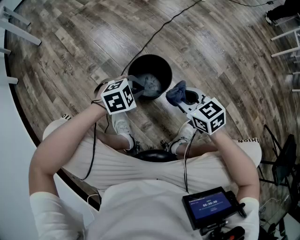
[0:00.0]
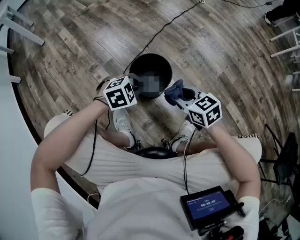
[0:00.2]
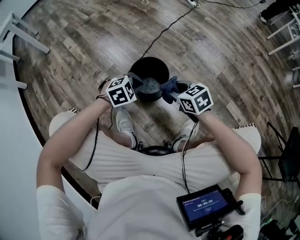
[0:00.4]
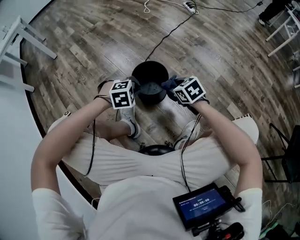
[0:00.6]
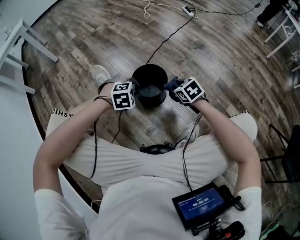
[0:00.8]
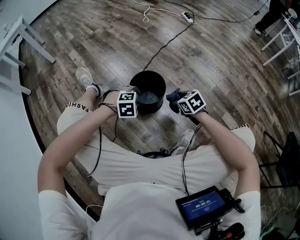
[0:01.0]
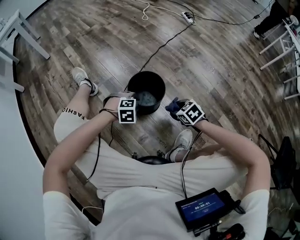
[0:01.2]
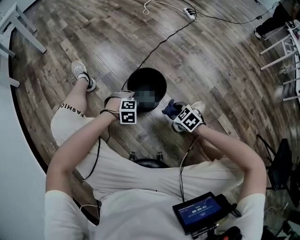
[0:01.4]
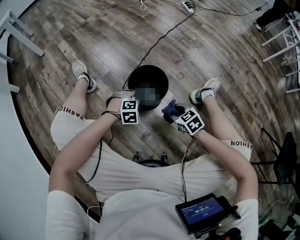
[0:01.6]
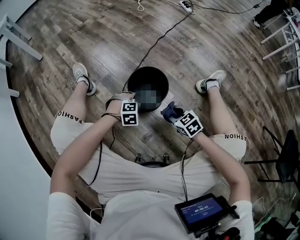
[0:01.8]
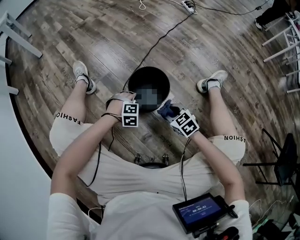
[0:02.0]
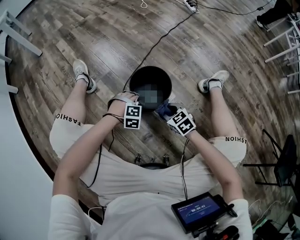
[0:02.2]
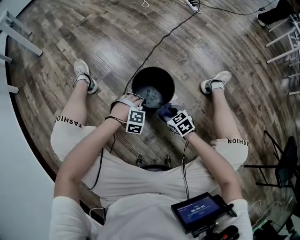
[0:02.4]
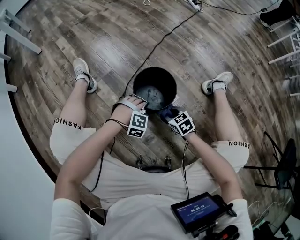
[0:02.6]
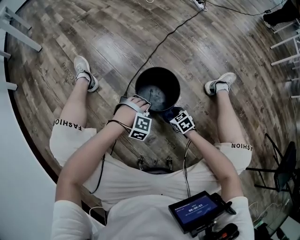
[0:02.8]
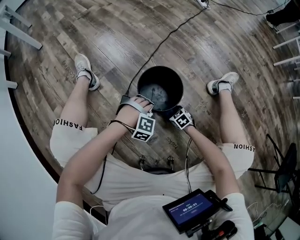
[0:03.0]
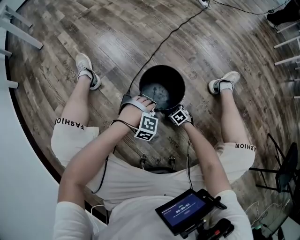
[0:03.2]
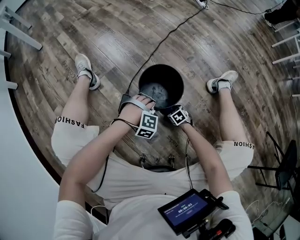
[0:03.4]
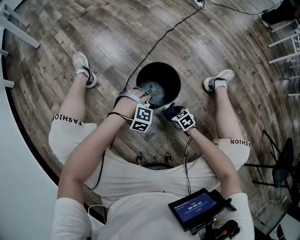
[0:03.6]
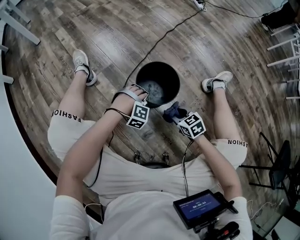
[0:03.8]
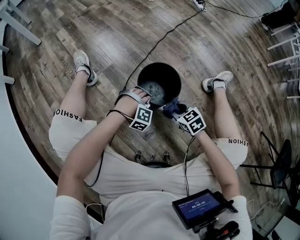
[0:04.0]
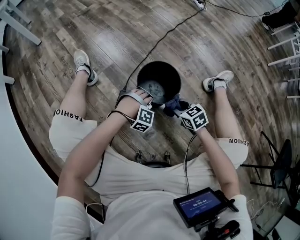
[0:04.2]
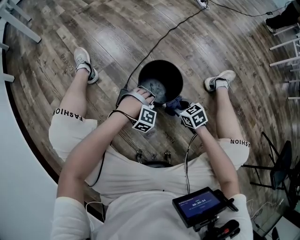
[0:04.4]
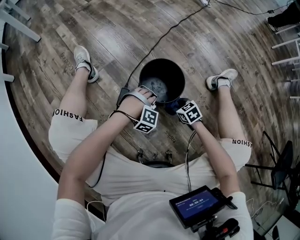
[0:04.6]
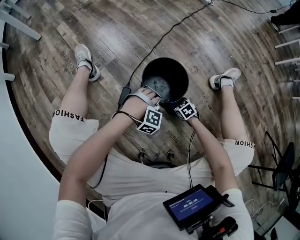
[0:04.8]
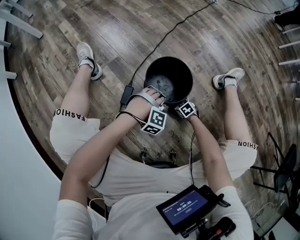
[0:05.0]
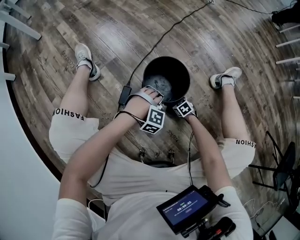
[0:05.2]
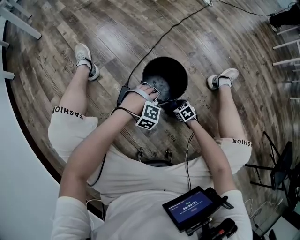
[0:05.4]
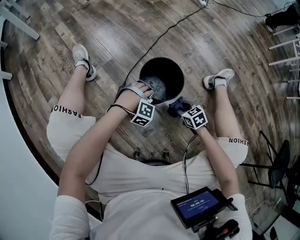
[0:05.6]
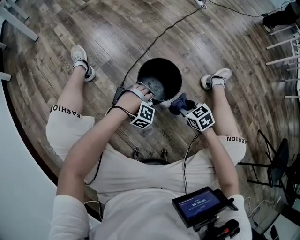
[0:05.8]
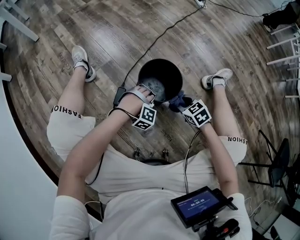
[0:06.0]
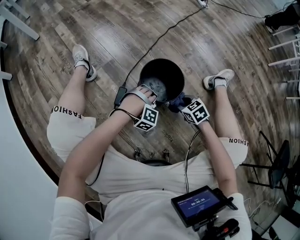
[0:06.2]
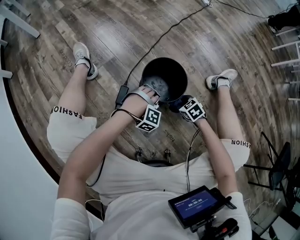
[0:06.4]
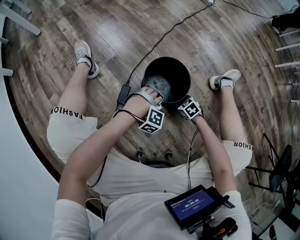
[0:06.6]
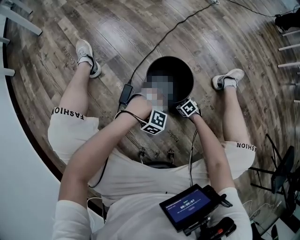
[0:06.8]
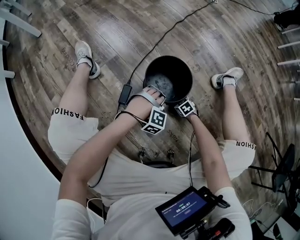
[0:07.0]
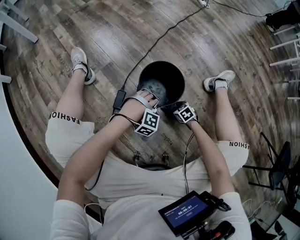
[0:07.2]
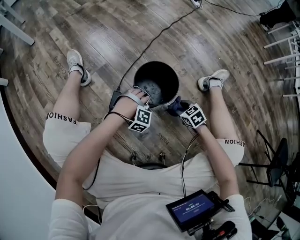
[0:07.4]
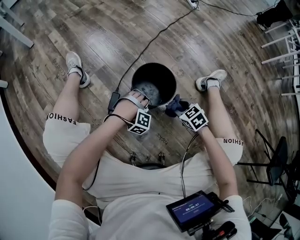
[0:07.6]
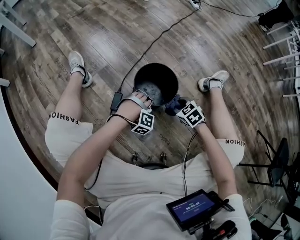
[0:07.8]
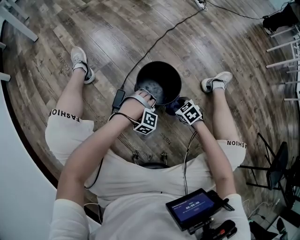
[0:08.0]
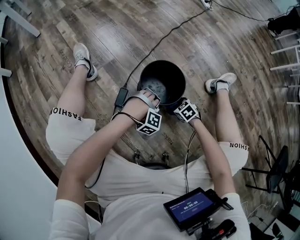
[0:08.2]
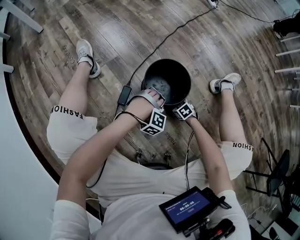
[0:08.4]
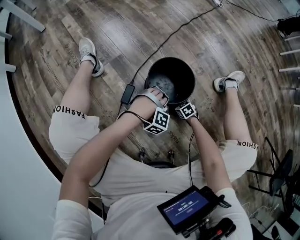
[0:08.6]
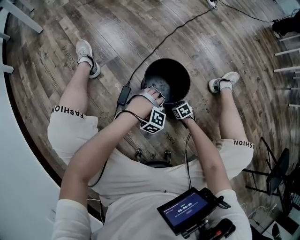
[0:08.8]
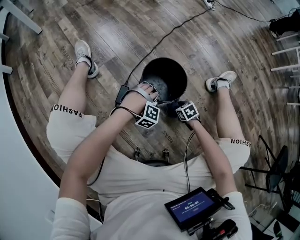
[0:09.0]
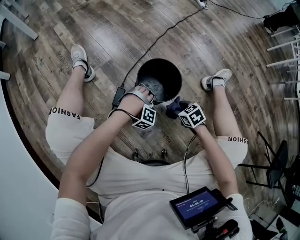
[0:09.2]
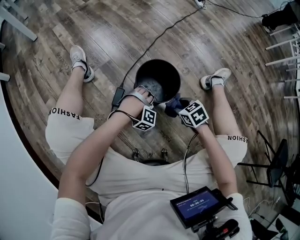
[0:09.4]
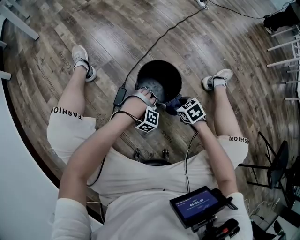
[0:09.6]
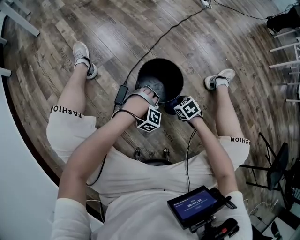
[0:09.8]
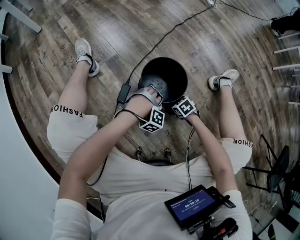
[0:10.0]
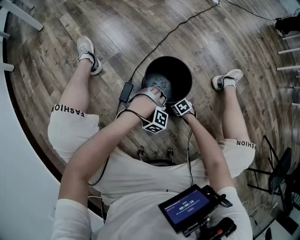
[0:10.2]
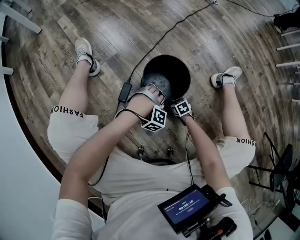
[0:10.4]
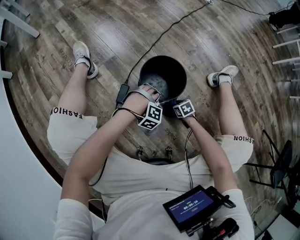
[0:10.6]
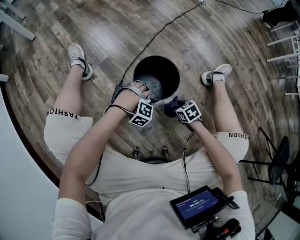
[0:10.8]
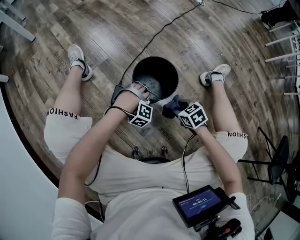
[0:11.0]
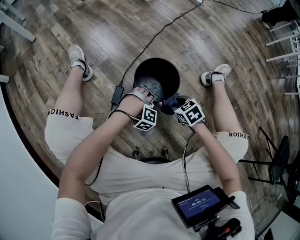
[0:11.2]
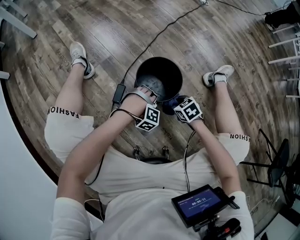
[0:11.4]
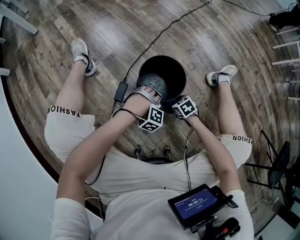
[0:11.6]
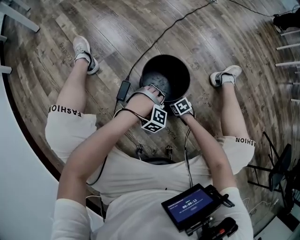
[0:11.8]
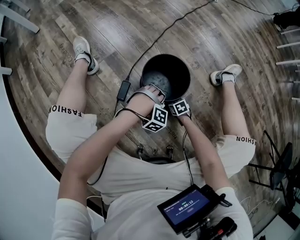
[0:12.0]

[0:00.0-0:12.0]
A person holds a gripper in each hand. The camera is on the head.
0:00.0 to 0:01.6: The right gripper shifts some 15 cm downward.
0:01.6 to 0:03.0: The right gripper shifts some 20 cm downward.
0:03.0 to 0:04.4: The right gripper shifts about 15 cm upward.
0:04.4 to 0:06.0: The right gripper moves about 20 cm downward and comes back.
0:06.0 to 0:07.6: The right gripper moves roughly 25 cm downward and comes back.
0:07.6 to 0:09.0: The right gripper goes some 15 cm downward.
0:09.0 to 0:10.4: The right gripper shifts some 10 cm downward.
0:10.4 to 0:12.0: The right gripper travels upward and back again, about 25 cm each way.

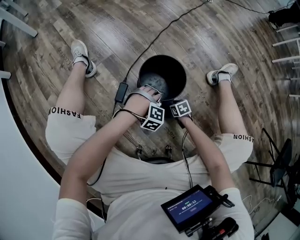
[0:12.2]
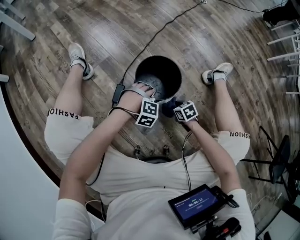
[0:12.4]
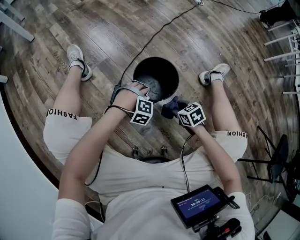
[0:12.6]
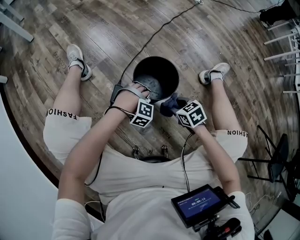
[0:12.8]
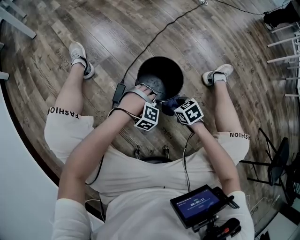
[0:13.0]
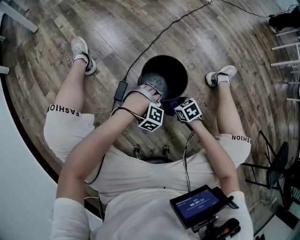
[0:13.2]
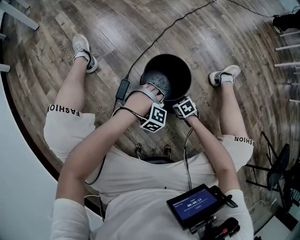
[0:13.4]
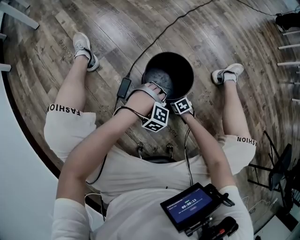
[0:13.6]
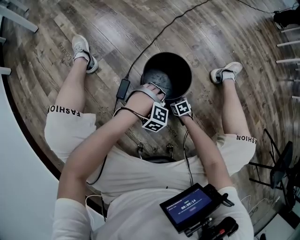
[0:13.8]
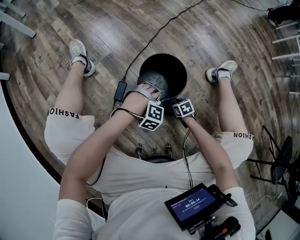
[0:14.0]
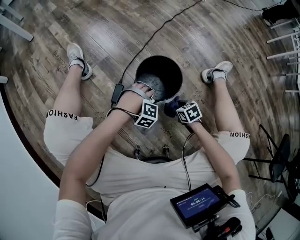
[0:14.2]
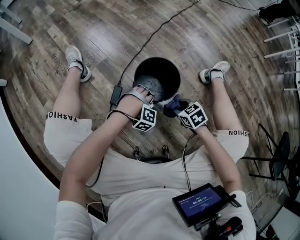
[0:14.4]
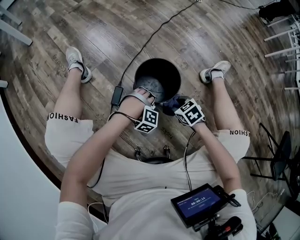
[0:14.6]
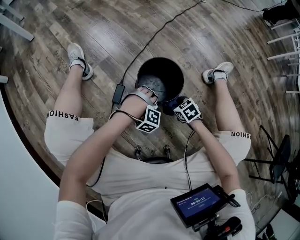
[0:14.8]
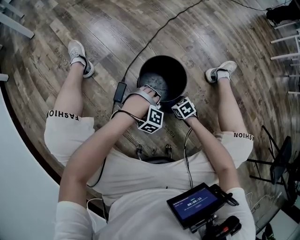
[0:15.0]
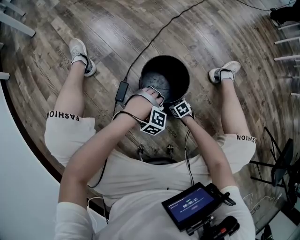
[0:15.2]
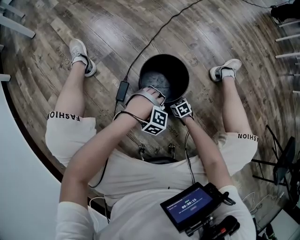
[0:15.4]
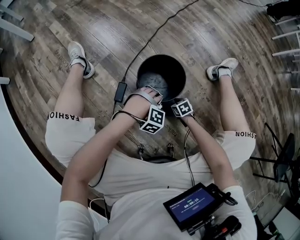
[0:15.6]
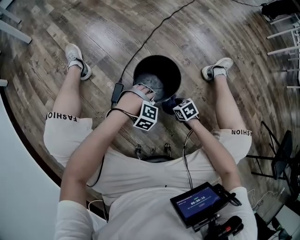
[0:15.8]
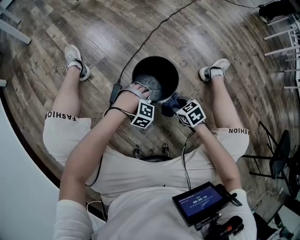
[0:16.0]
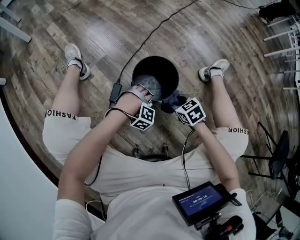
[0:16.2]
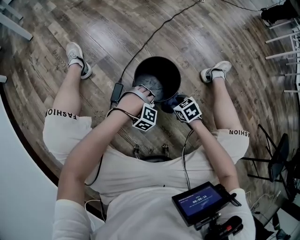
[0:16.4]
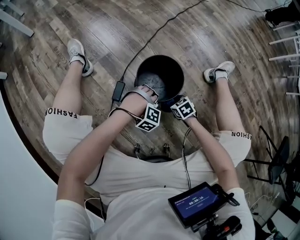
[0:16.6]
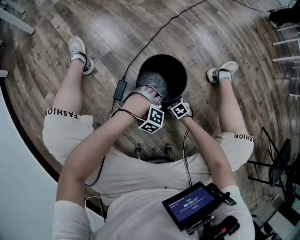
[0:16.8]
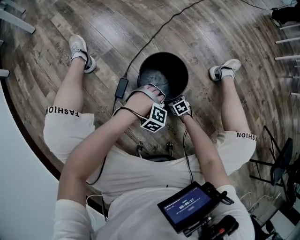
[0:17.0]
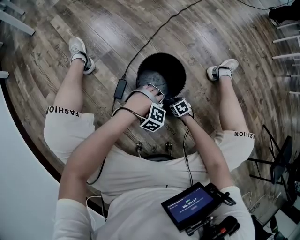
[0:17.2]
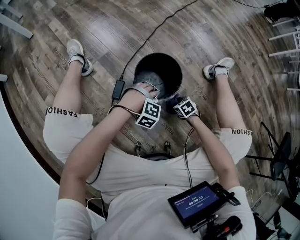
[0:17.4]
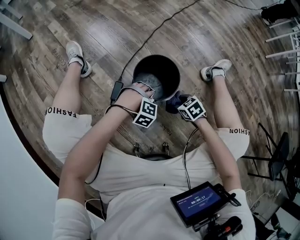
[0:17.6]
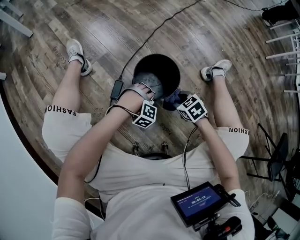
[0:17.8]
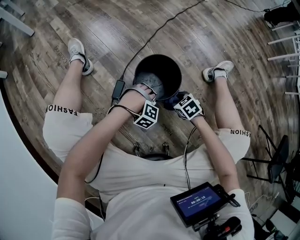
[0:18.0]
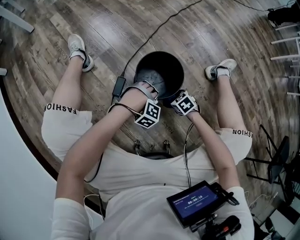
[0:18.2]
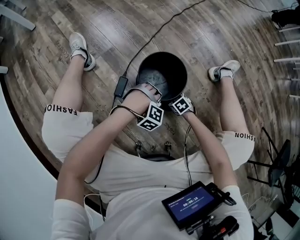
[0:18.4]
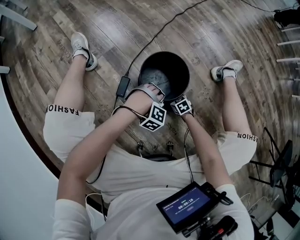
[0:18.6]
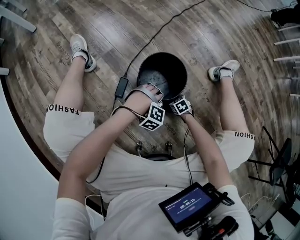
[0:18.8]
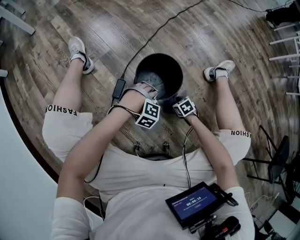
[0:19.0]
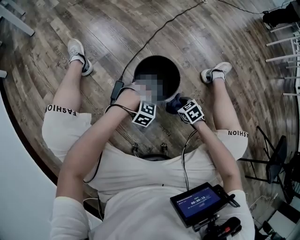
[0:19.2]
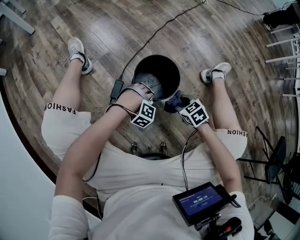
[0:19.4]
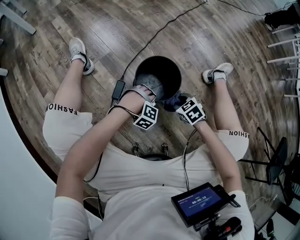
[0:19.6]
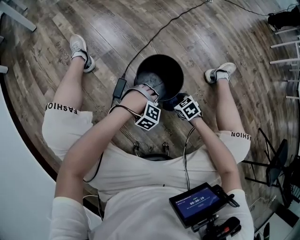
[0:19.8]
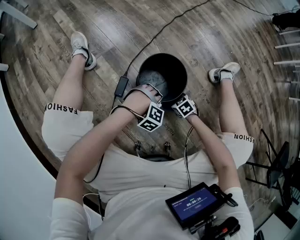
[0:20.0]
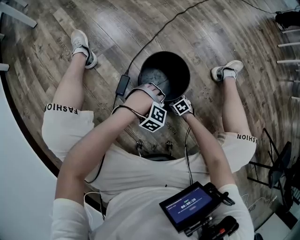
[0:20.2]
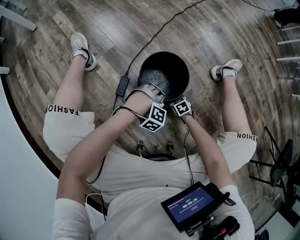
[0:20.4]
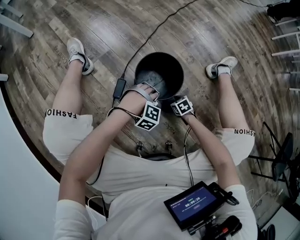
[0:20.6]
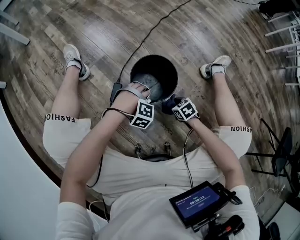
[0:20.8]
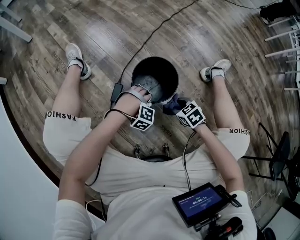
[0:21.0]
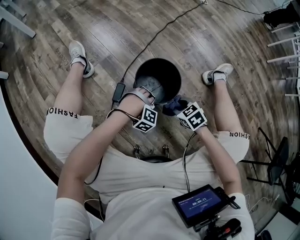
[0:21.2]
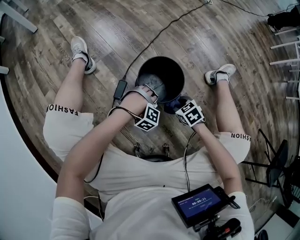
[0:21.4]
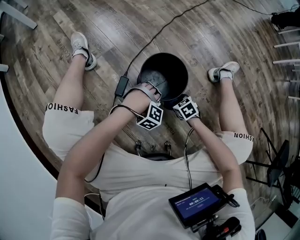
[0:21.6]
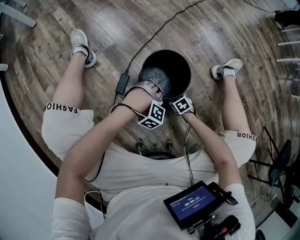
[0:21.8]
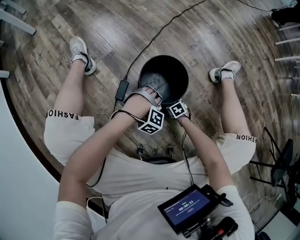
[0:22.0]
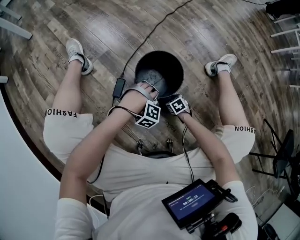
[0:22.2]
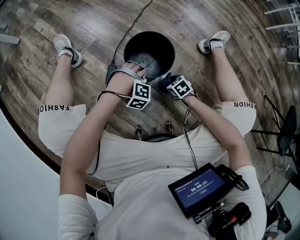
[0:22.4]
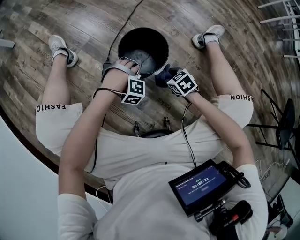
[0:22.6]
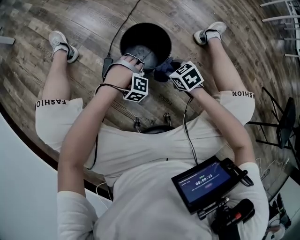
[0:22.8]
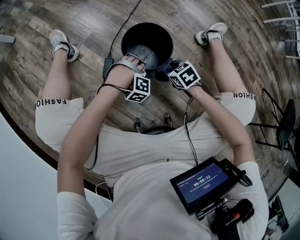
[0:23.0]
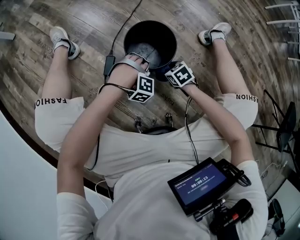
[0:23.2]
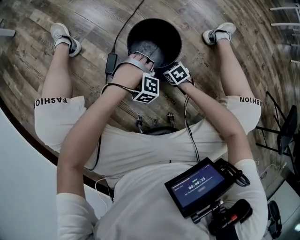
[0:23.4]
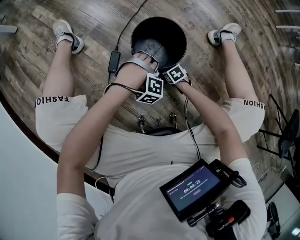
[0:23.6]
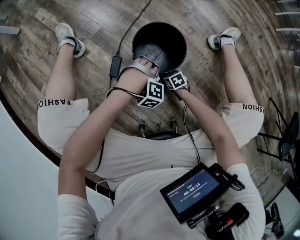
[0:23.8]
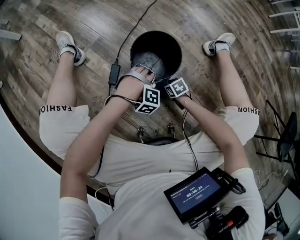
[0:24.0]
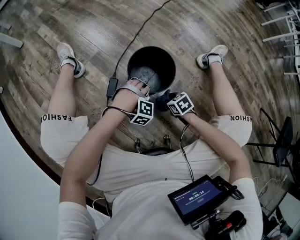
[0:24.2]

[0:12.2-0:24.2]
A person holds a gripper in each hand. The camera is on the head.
0:12.2 to 0:13.8: The right gripper reaches some 20 cm upward, then returns.
0:13.8 to 0:15.2: The right gripper reaches roughly 20 cm upward, then returns.
0:15.2 to 0:16.6: The right gripper travels upward by approximately 10 cm.
0:16.6 to 0:18.2: The right gripper swings up and down, approximately 20 cm each way, with 2 reversals.
0:18.2 to 0:19.8: The right gripper moves up and down over approximately 25 cm, changing direction 2 times.
0:19.8 to 0:21.2: The right gripper shifts some 10 cm upward.
0:21.2 to 0:22.6: The right gripper goes downward and returns, approximately 25 cm each way.
0:22.6 to 0:24.2: The right gripper goes up and down, approximately 20 cm each way, reversing 2 times.
